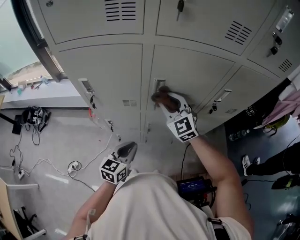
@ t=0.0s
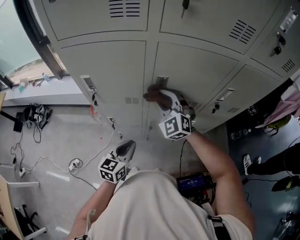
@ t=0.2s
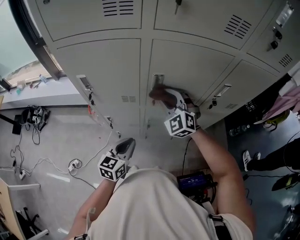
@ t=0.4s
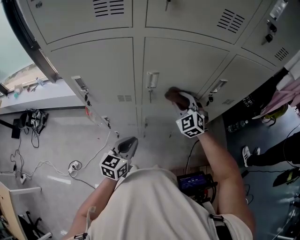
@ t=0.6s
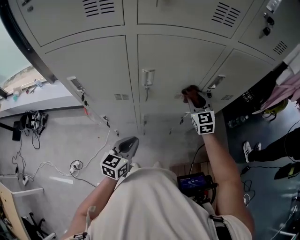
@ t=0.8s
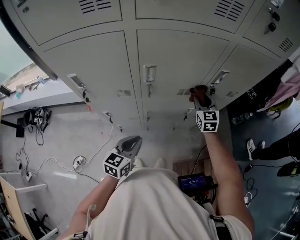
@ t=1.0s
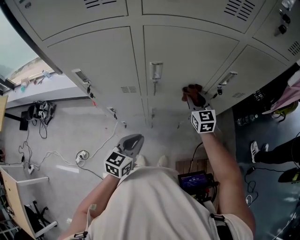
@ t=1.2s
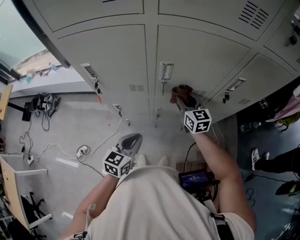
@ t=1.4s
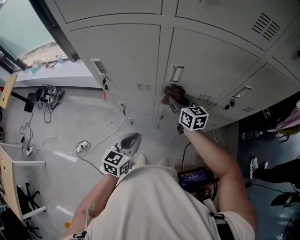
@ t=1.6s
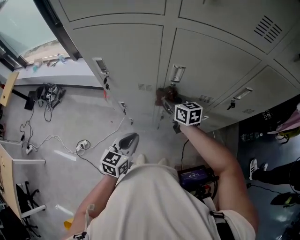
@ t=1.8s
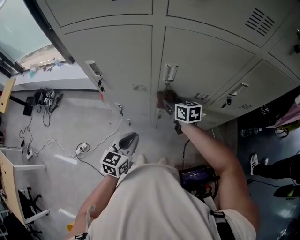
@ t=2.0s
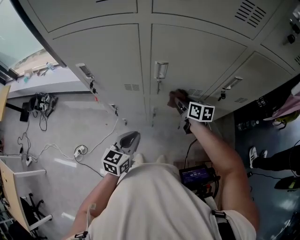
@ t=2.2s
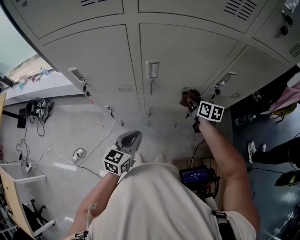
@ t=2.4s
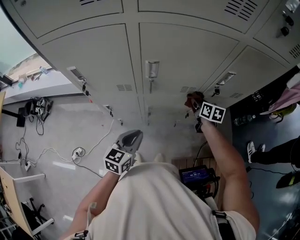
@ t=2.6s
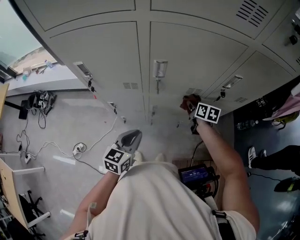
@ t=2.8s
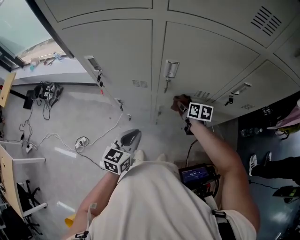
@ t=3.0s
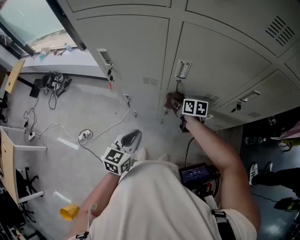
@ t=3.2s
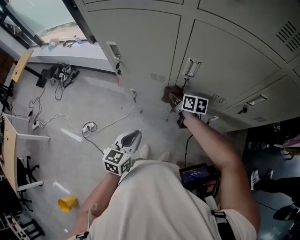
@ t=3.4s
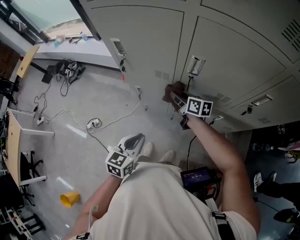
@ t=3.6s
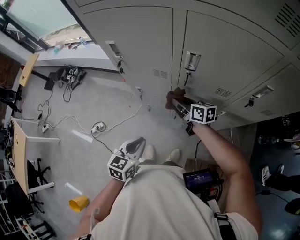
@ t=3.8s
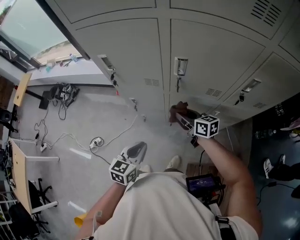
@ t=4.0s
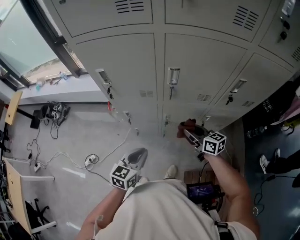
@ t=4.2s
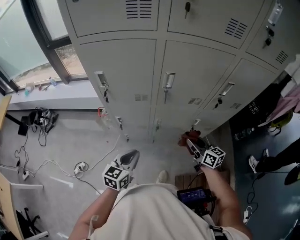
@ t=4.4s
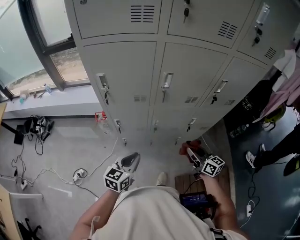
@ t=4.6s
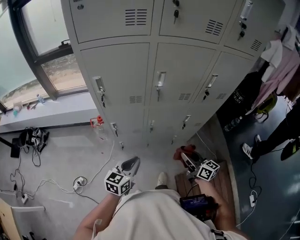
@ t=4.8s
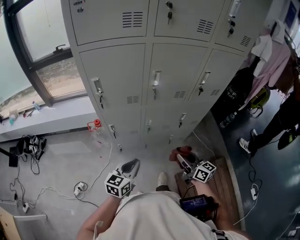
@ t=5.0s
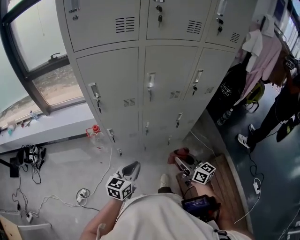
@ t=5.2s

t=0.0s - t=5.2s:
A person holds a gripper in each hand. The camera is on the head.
t=0.0s - t=1.8s: The right gripper is displaced downward by about 15 cm, and rolls clockwise, seen from behind, by some 50 degrees.
t=1.8s - t=3.4s: The right gripper moves downward, some 5 cm, and swivels roughly 20 degrees.
t=3.4s - t=5.2s: The right gripper moves roughly 35 cm, and rotates approximately 40 degrees; the left gripper shifts by approximately 10 cm, and turns by roughly 30 degrees.

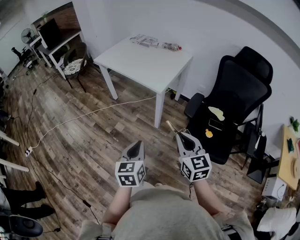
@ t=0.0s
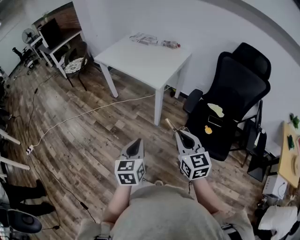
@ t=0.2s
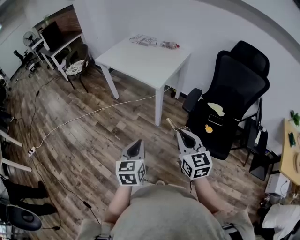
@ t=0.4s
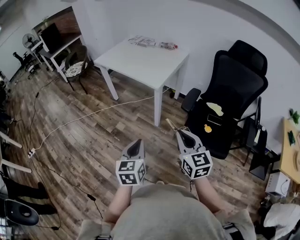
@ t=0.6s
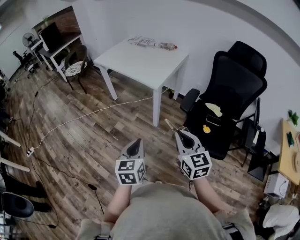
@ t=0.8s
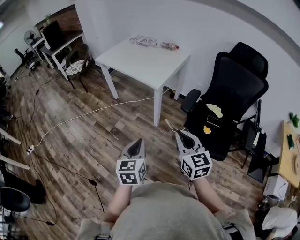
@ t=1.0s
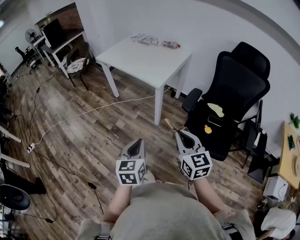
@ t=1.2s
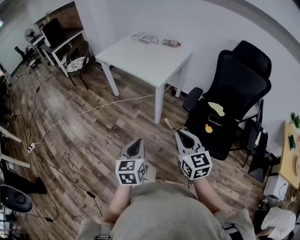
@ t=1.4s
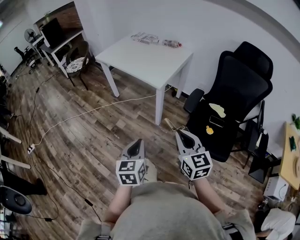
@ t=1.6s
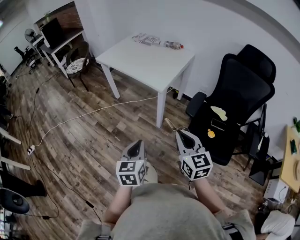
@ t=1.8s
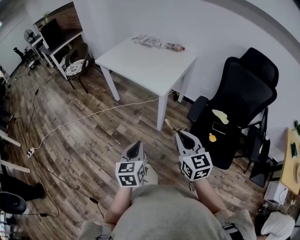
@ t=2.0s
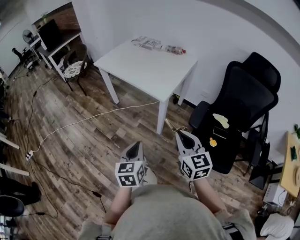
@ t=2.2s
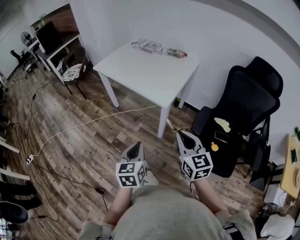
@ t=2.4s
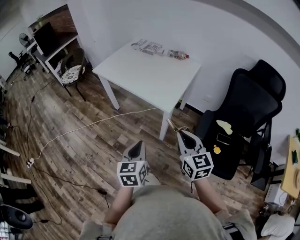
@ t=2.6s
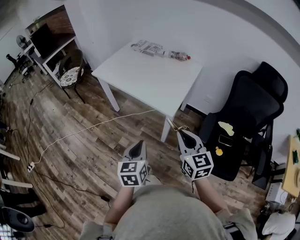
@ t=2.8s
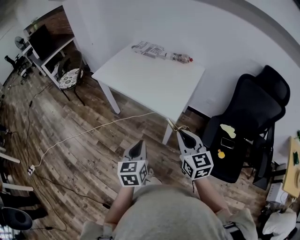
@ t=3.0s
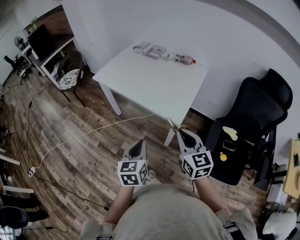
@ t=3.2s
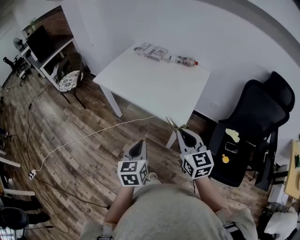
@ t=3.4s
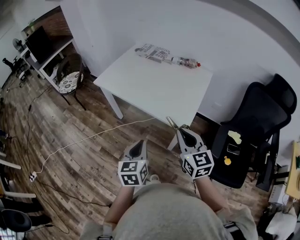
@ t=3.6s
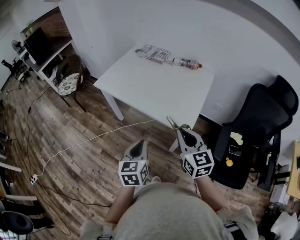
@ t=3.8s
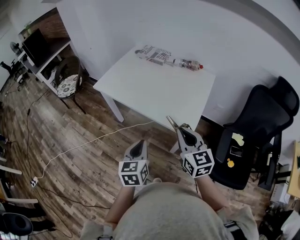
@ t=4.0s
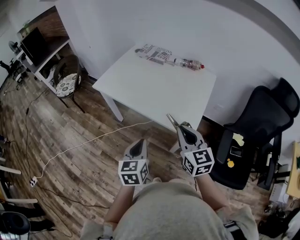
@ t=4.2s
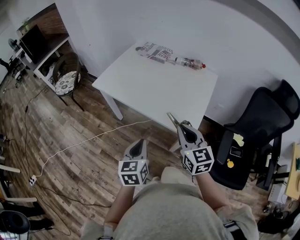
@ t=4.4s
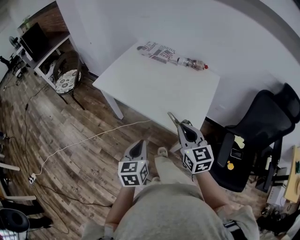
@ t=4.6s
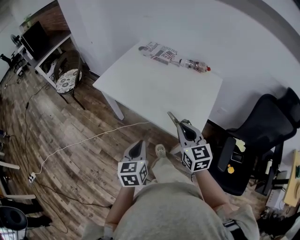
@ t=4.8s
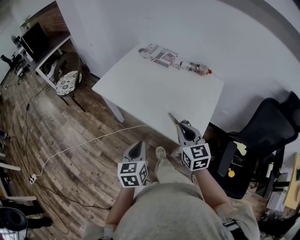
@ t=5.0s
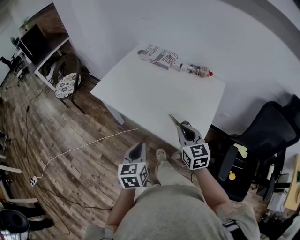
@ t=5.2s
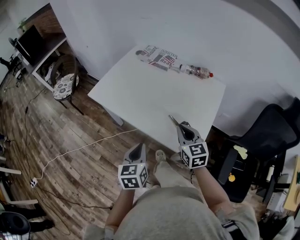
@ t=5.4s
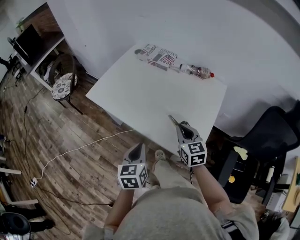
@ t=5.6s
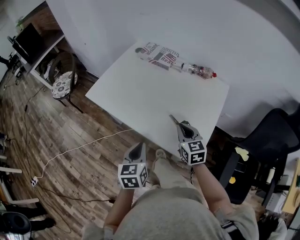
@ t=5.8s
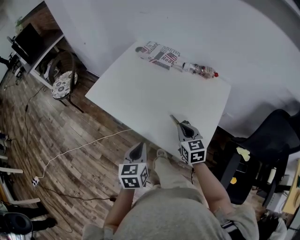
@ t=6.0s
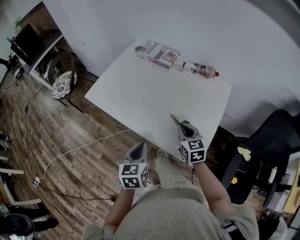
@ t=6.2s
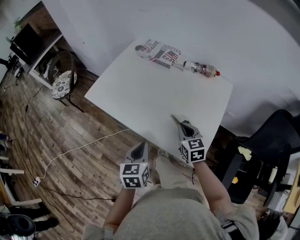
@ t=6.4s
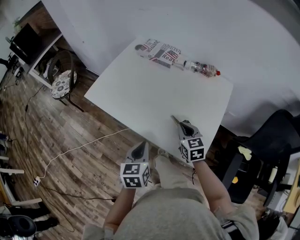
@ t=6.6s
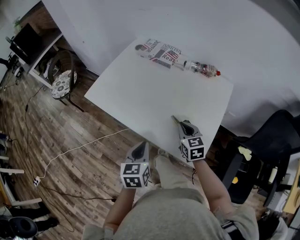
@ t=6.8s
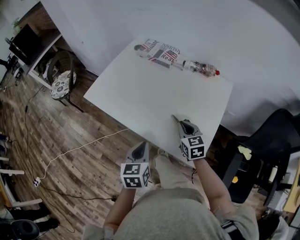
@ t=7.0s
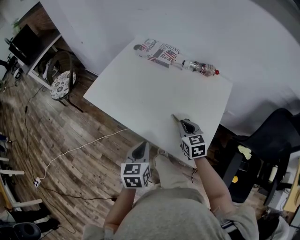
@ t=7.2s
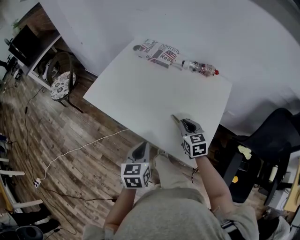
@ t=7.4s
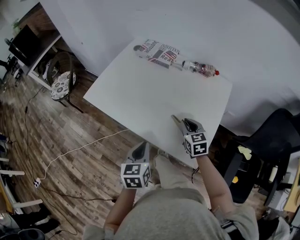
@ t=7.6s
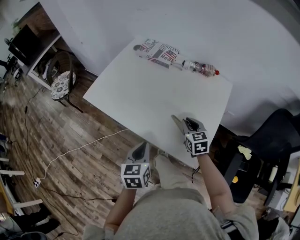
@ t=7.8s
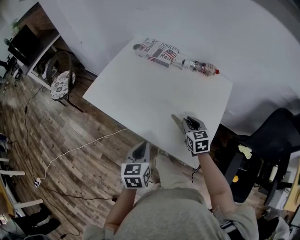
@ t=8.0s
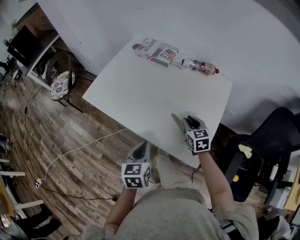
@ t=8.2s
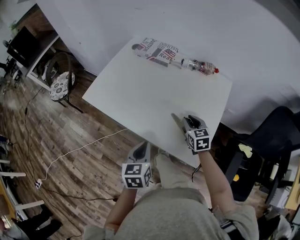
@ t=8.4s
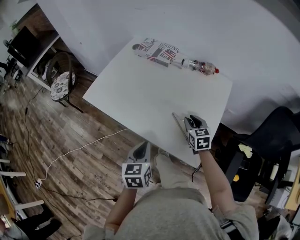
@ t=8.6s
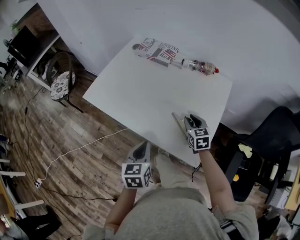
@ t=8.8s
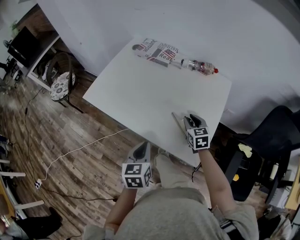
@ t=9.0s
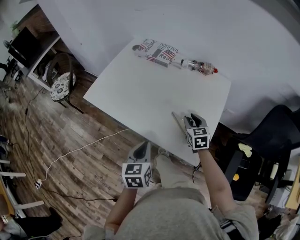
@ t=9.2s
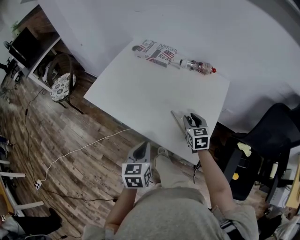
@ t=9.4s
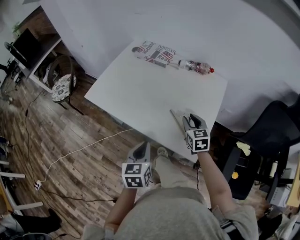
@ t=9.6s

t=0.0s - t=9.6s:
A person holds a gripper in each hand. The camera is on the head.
t=0.0s - t=1.6s: There are only small adjustments of the grippers.
t=1.6s - t=3.2s: Both grippers move forward, about 30 cm.
t=3.2s - t=4.8s: The left gripper moves forward and to the left, some 15 cm. Meanwhile the right gripper heads forward, covering roughly 20 cm.
t=4.8s - t=6.4s: The right gripper is displaced forward and downward by about 20 cm; the left gripper is displaced forward by approximately 15 cm.
t=6.4s - t=8.0s: The right gripper changes place by roughly 5 cm.
t=8.0s - t=9.6s: There are only small adjustments of the grippers.

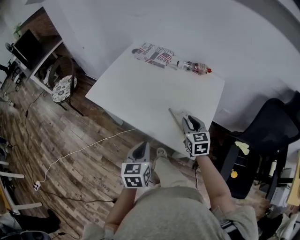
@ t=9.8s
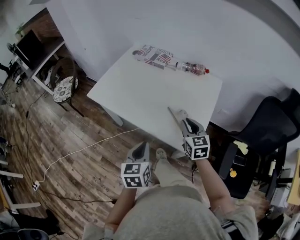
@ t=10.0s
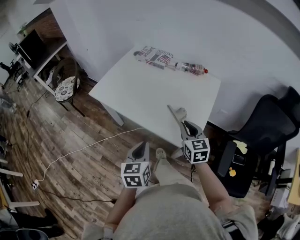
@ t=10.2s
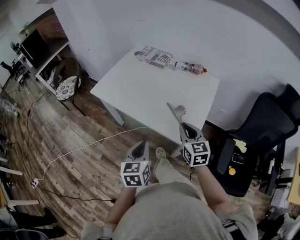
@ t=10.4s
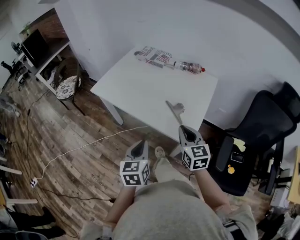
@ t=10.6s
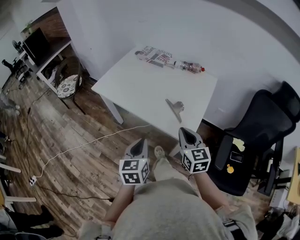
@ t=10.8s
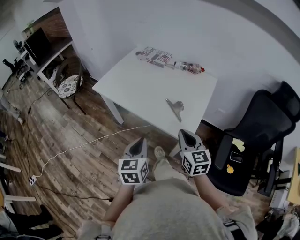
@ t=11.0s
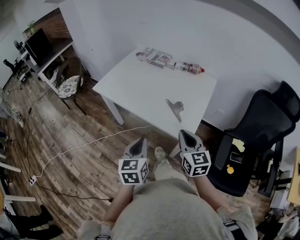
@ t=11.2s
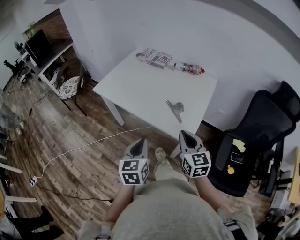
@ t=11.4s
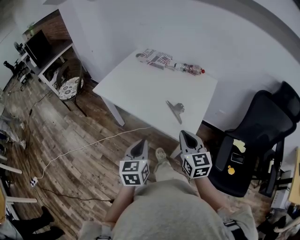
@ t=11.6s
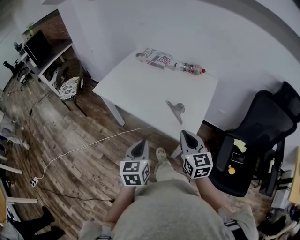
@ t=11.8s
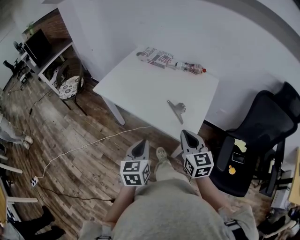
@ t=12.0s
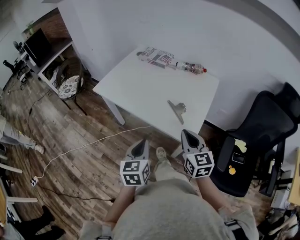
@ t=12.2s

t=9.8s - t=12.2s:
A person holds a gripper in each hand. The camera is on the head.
t=9.8s - t=11.0s: The right gripper goes roughly 20 cm backward and upward, and closes its fingers; the left gripper is displaced backward by roughly 10 cm.
t=11.0s - t=12.2s: The grippers move only a little.

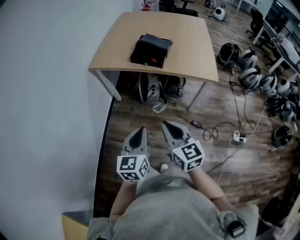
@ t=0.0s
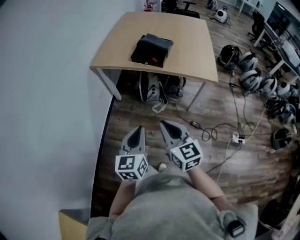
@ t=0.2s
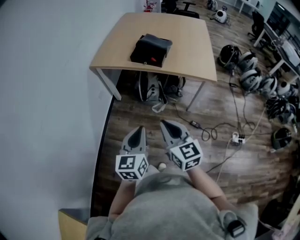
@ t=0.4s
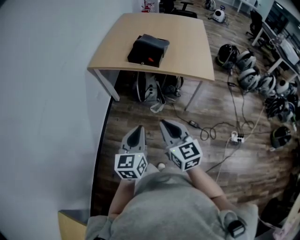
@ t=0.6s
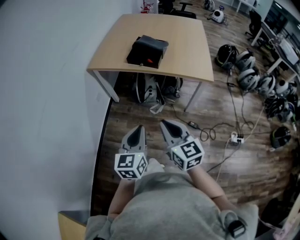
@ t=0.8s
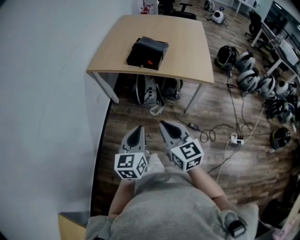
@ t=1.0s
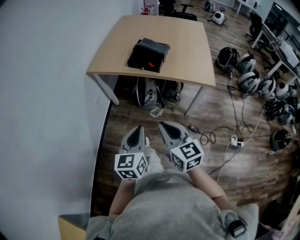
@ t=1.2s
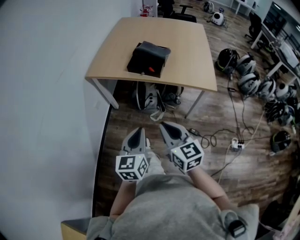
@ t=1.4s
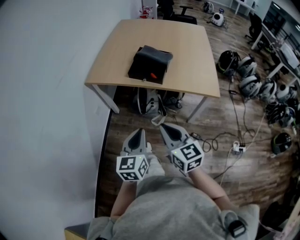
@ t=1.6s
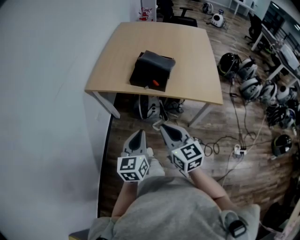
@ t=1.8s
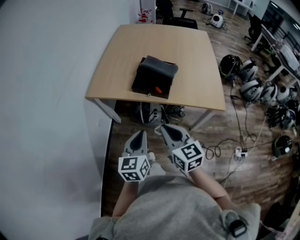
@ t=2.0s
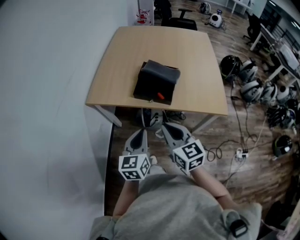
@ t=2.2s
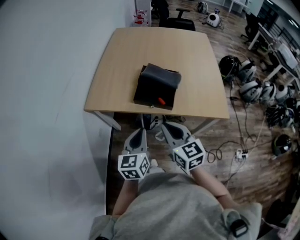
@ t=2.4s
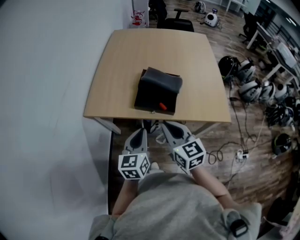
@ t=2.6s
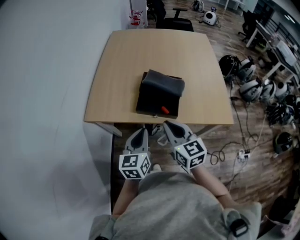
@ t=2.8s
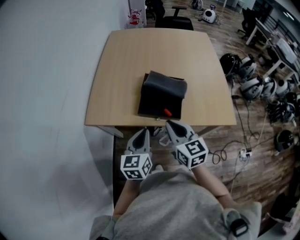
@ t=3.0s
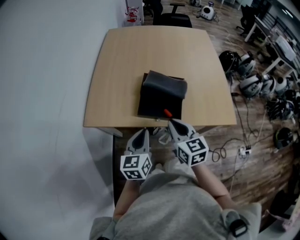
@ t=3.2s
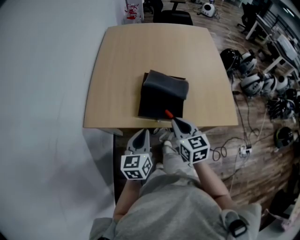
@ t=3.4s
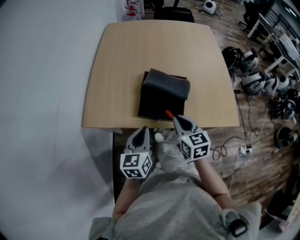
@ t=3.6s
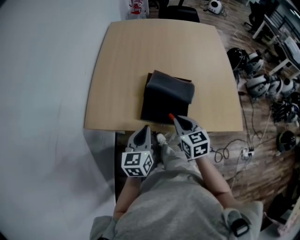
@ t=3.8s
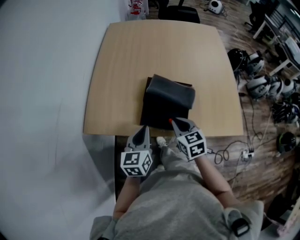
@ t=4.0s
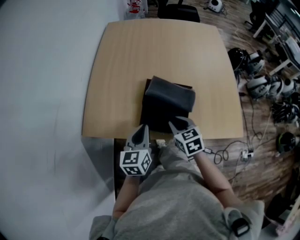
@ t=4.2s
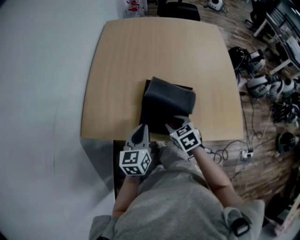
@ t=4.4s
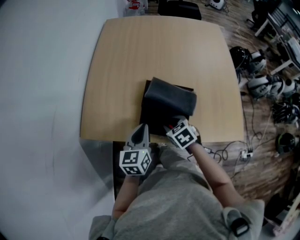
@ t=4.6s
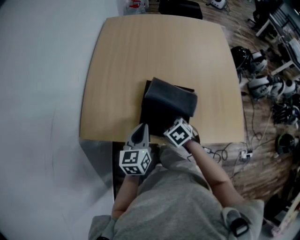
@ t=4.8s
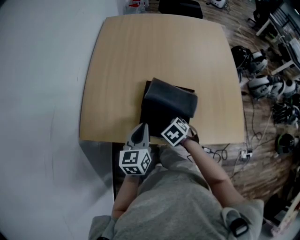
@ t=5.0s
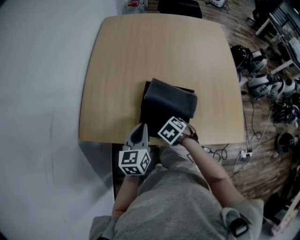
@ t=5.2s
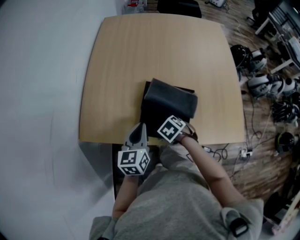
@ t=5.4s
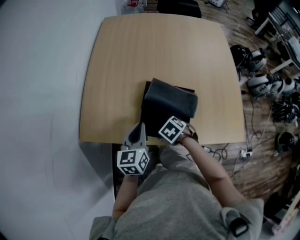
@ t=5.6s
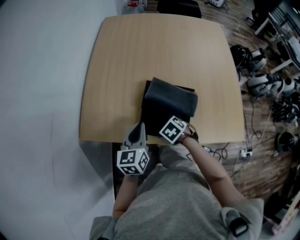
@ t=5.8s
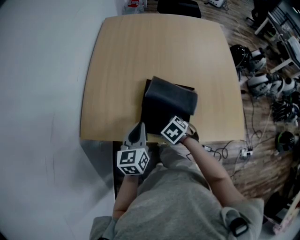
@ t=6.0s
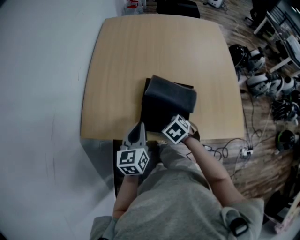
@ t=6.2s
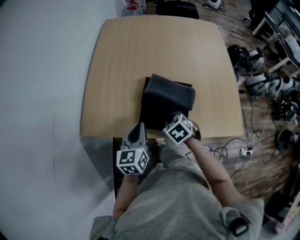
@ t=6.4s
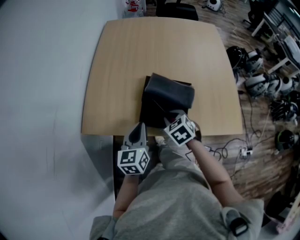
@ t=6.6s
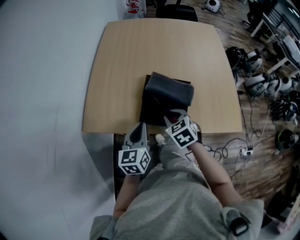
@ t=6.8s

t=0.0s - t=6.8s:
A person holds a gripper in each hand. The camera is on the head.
t=0.0s - t=1.4s: The two grippers go approximately 5 cm forward.
t=1.4s - t=2.8s: The two grippers go roughly 35 cm forward.
t=2.8s - t=4.0s: The left gripper heads forward, covering about 15 cm. Meanwhile the right gripper is displaced forward and downward by approximately 20 cm, and changes its angle by some 20 degrees.
t=4.0s - t=5.4s: The right gripper travels downward by some 10 cm, angles its fingers downward, by approximately 50 degrees, and opens; the left gripper shifts by about 10 cm.
t=5.4s - t=6.8s: The left gripper changes place by about 10 cm; the right gripper shifts about 10 cm upward, and points its fingers approximately 30 degrees further upward.
